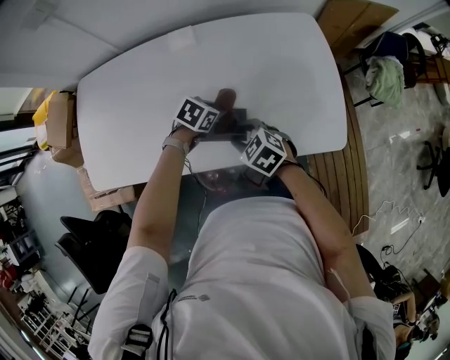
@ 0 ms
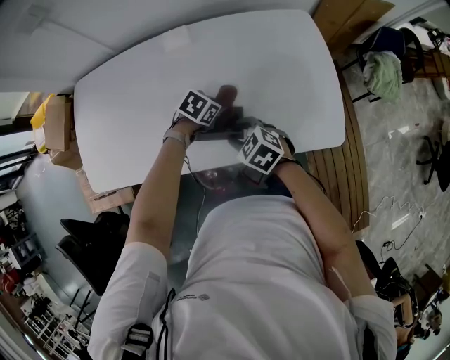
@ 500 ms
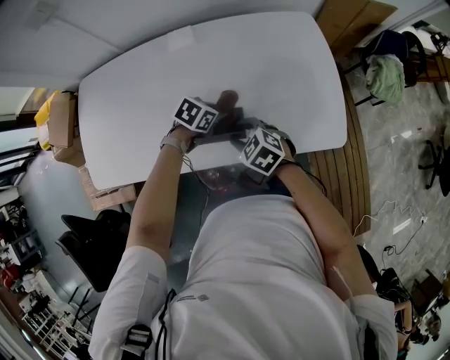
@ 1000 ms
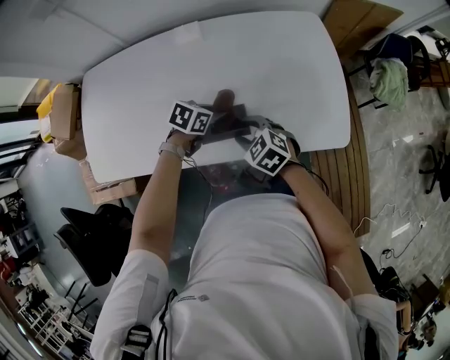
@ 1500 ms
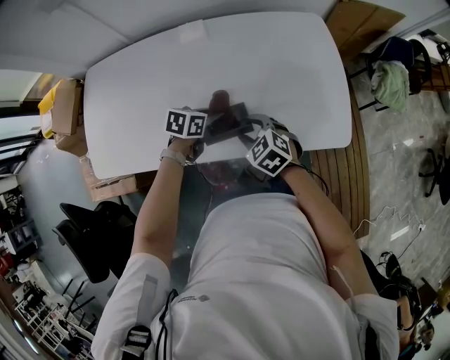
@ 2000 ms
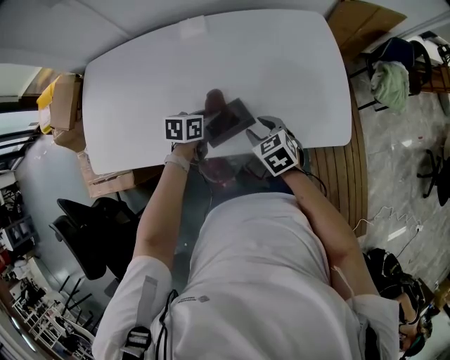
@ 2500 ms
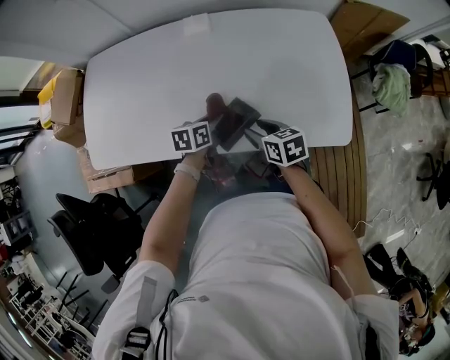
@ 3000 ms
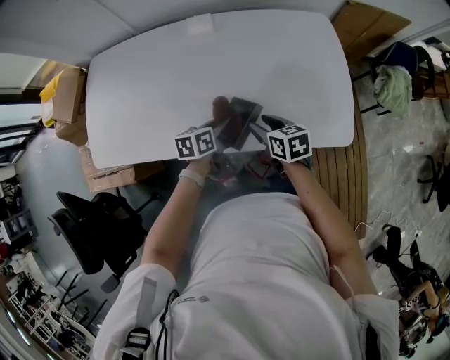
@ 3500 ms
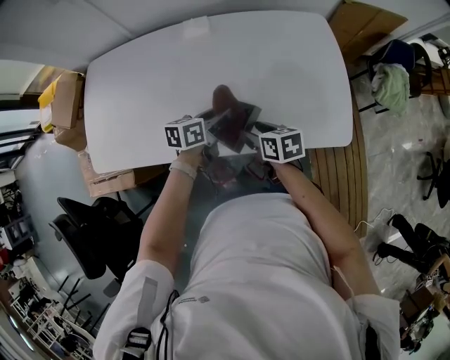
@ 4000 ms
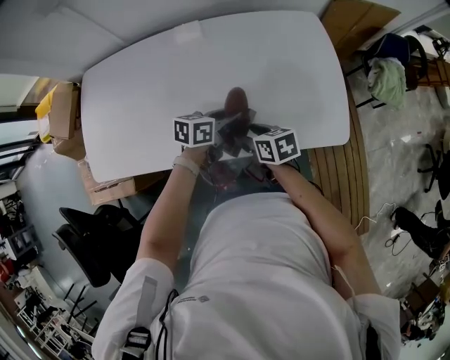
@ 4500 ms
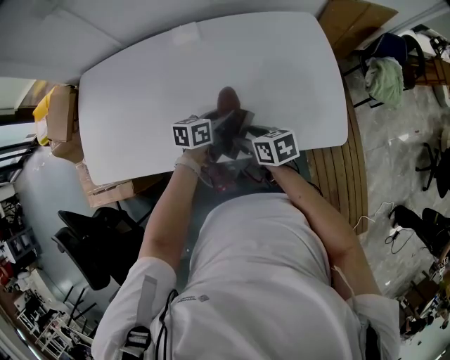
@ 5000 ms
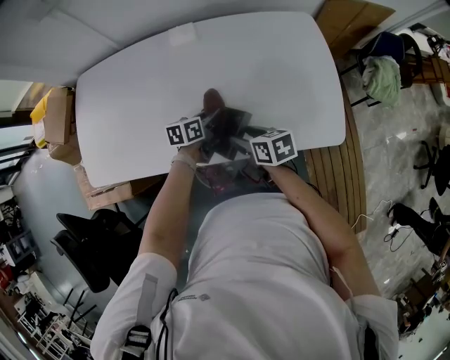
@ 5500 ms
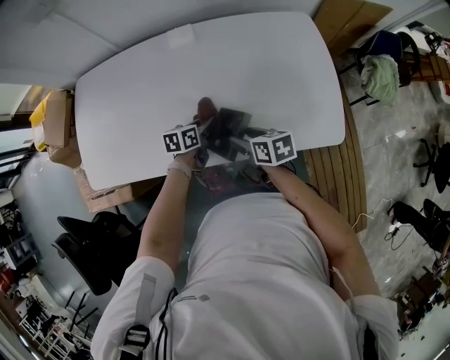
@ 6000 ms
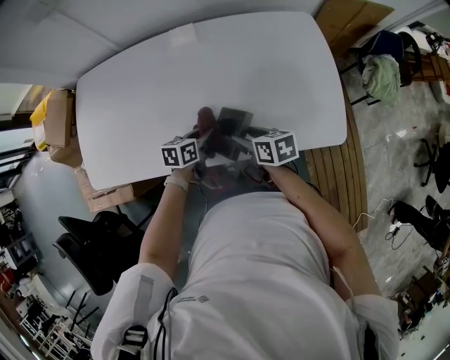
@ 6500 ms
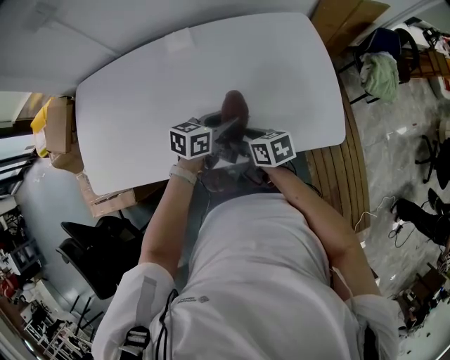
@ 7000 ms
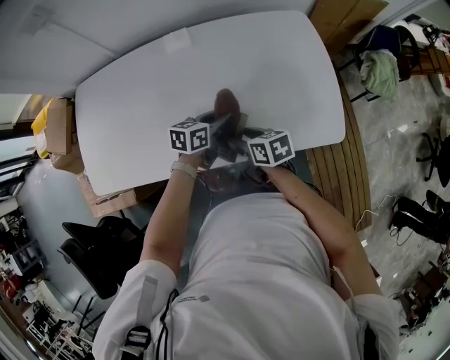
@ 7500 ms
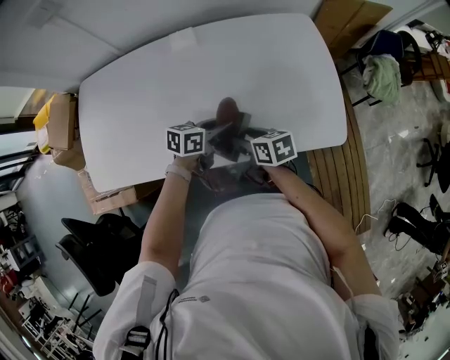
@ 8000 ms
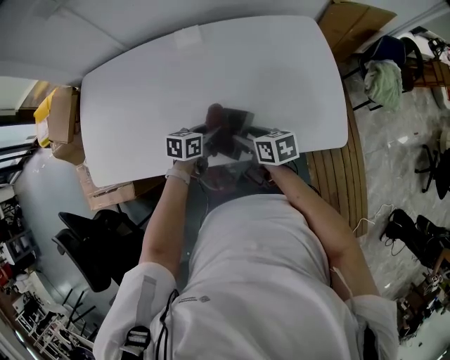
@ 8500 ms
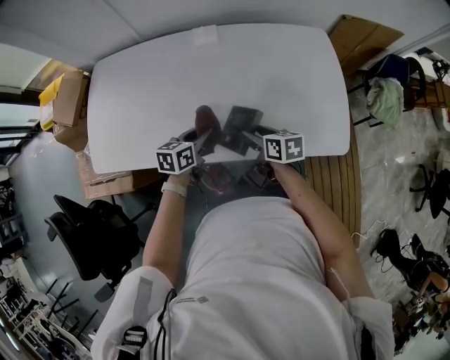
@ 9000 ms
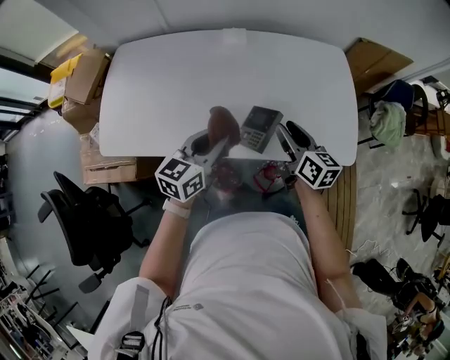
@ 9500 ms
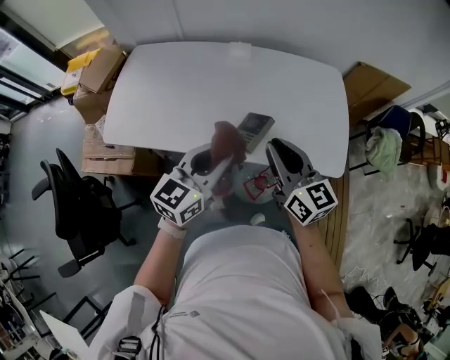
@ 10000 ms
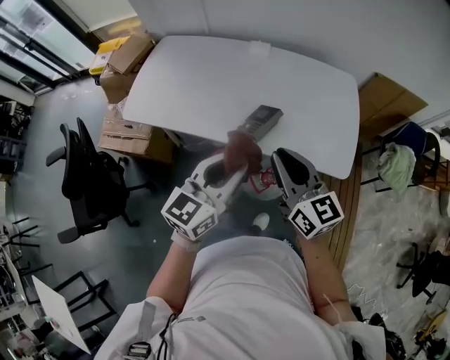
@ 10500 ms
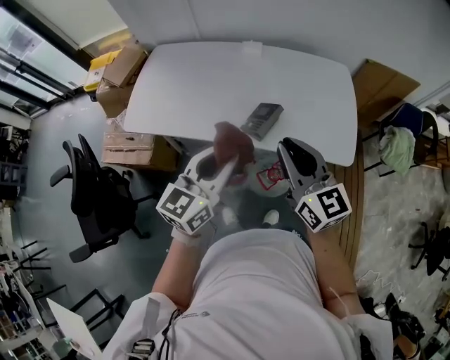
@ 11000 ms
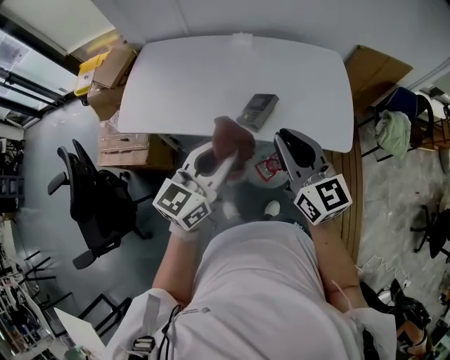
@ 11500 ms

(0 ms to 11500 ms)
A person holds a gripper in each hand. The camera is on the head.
0 ms - 2000 ms: The left gripper ends up roughly 5 cm from where it was, and rotates approximately 20 degrees.
2000 ms - 4000 ms: The left gripper swivels roughly 30 degrees. The right gripper rolls clockwise, seen from behind, by some 50 degrees.
4000 ms - 6000 ms: The left gripper heads downward, covering some 10 cm.
6000 ms - 7500 ms: The left gripper moves upward and to the right, approximately 10 cm.
7500 ms - 9500 ms: The right gripper heads upward, covering some 10 cm, and changes its angle by some 30 degrees, while the left gripper goes approximately 20 cm upward, to the left and backward, and rotates approximately 30 degrees.
9500 ms - 11500 ms: The right gripper travels upward and backward by some 25 cm, turns by about 30 degrees, and closes; the left gripper is displaced backward and upward by some 20 cm.

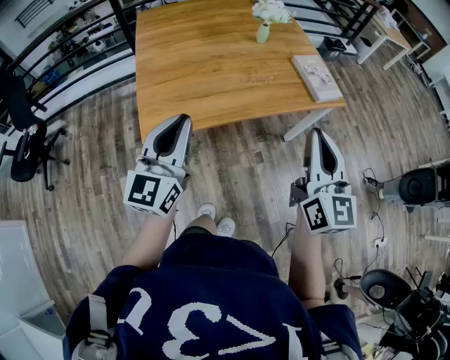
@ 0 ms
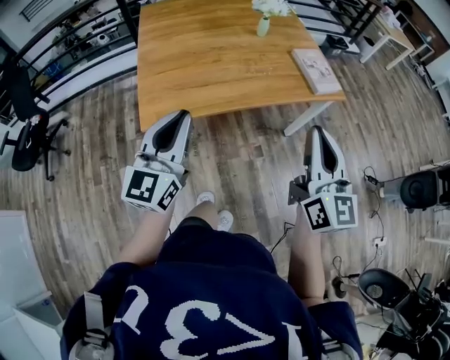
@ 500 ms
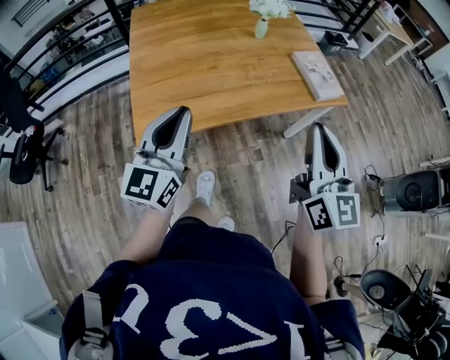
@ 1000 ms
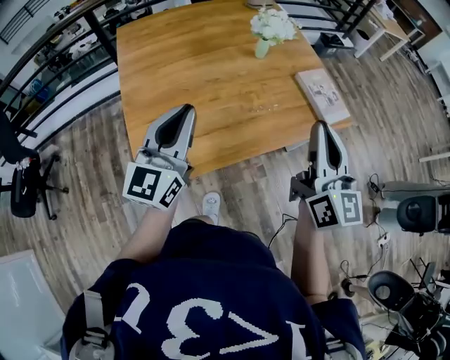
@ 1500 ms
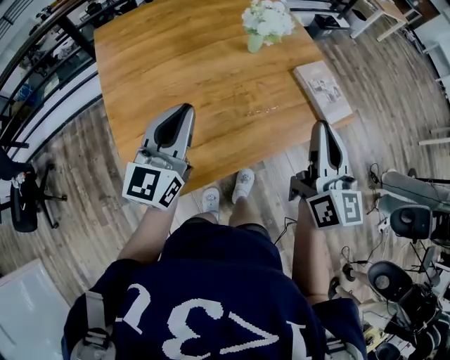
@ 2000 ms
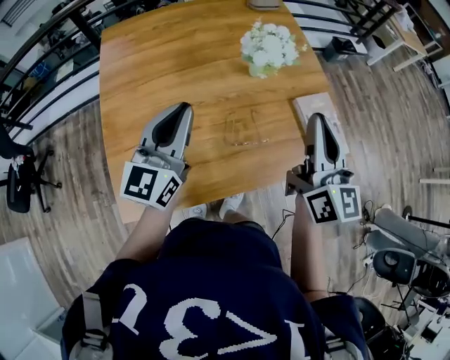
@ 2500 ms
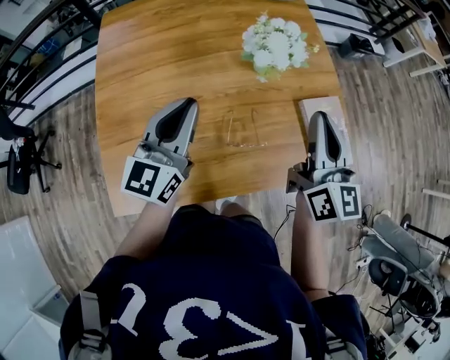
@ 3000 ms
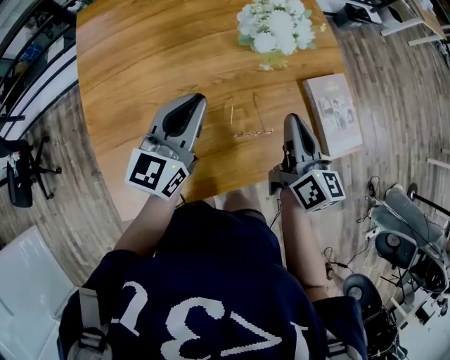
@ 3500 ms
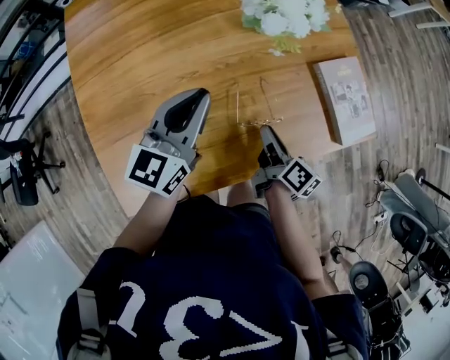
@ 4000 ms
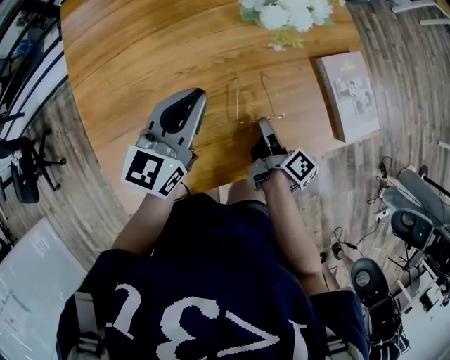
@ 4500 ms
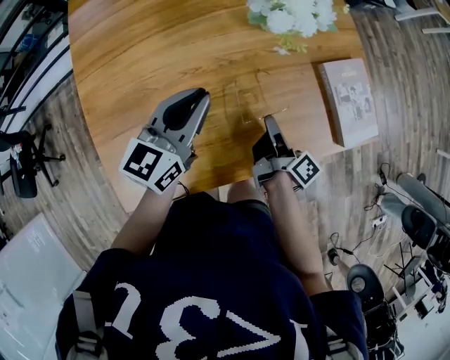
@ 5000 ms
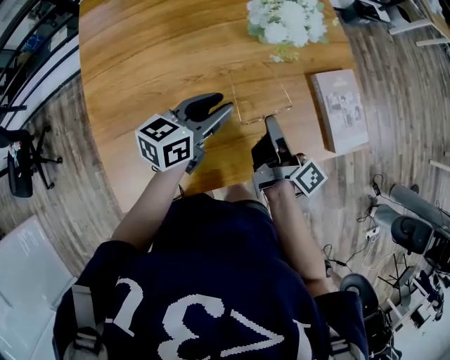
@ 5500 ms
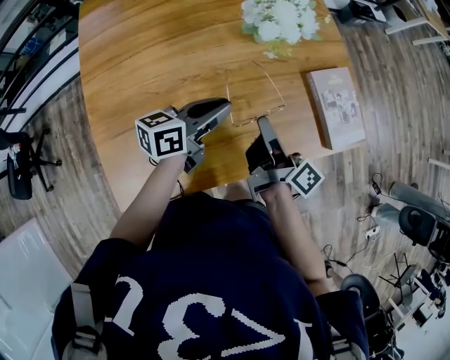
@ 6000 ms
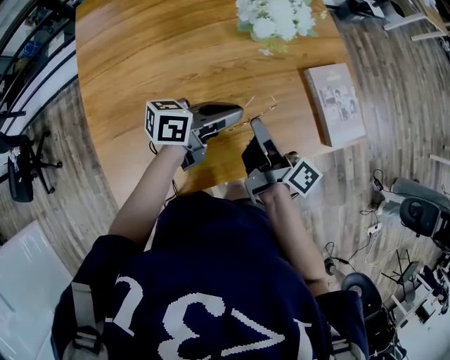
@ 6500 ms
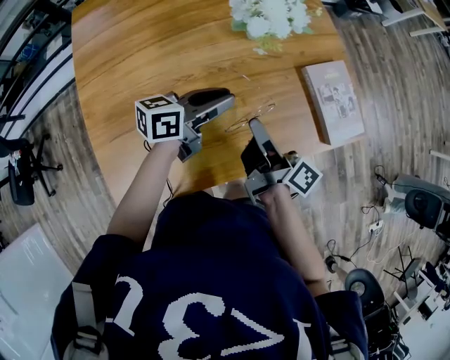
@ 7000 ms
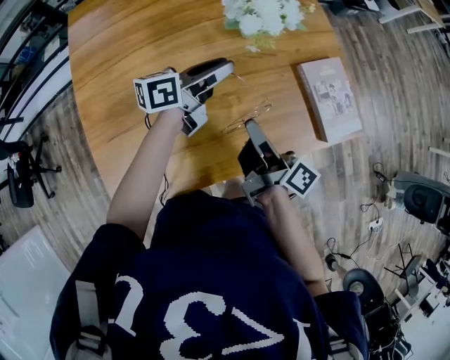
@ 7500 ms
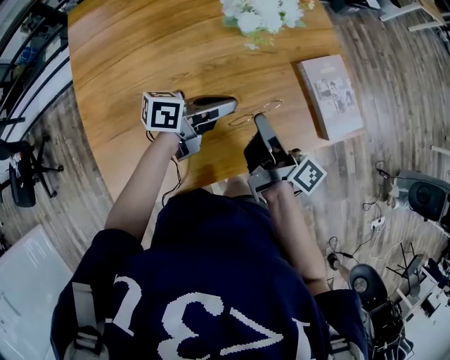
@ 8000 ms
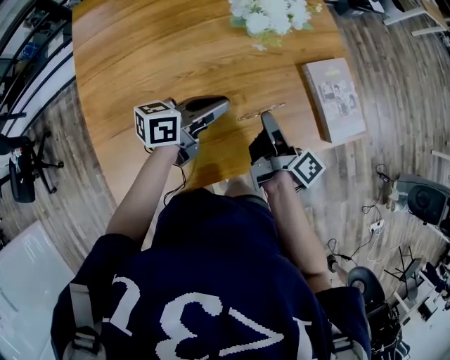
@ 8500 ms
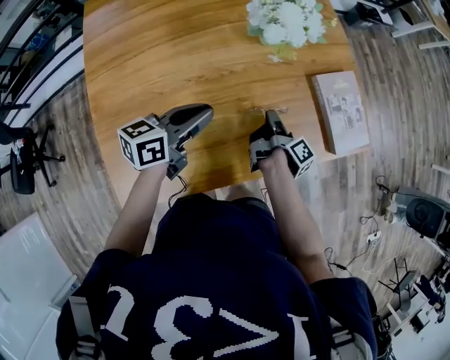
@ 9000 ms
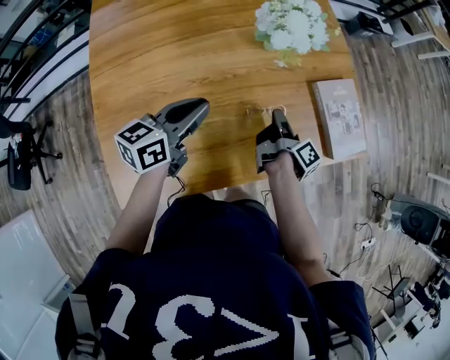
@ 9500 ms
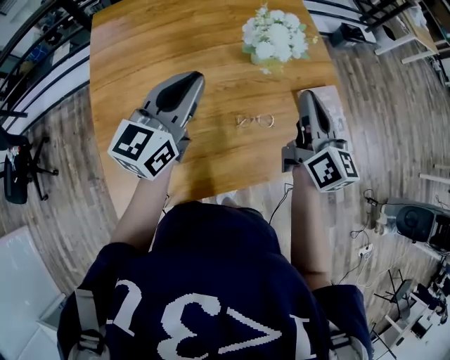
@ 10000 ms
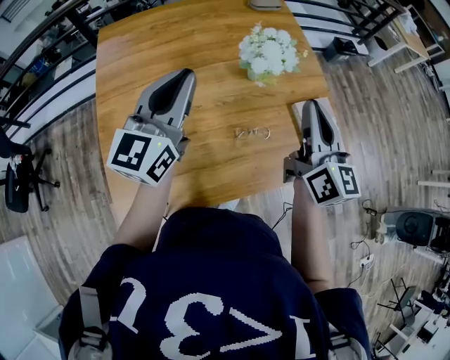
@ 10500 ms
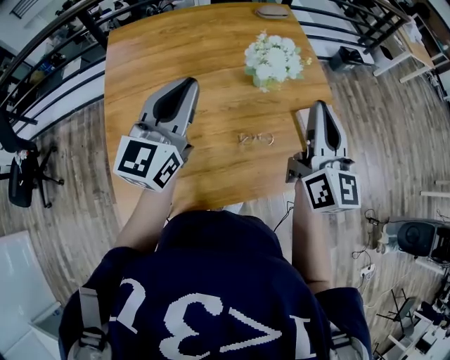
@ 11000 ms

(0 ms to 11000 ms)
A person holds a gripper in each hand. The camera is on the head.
0 ms - 2000 ms: Both grippers travel together forward, roughly 25 cm.
2000 ms - 3500 ms: The right gripper travels forward and downward by about 25 cm, and rotates some 30 degrees; the left gripper moves forward, downward and to the right, approximately 20 cm.
3500 ms - 5500 ms: Both grippers travel together downward, approximately 10 cm. The left gripper changes its angle by some 30 degrees, and opens up; the right gripper twists approximately 50 degrees clockwise, seen from behind.
5500 ms - 7500 ms: The left gripper shifts about 10 cm forward, changes its angle by approximately 20 degrees, and closes, then reopens.
7500 ms - 9000 ms: The left gripper is displaced backward by about 10 cm, and closes its fingers. Meanwhile the right gripper is displaced downward and forward by some 15 cm, and rotates some 40 degrees.
9000 ms - 11000 ms: The right gripper heads upward, covering some 35 cm, and twists approximately 80 degrees counterclockwise, seen from behind. The left gripper moves upward, about 20 cm, and rotates some 50 degrees.

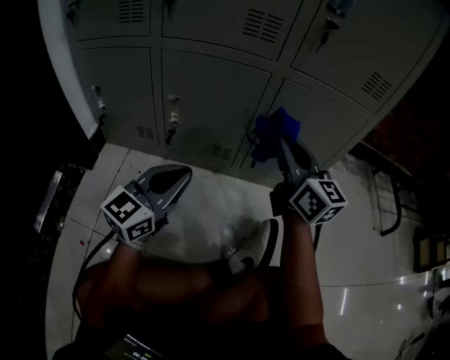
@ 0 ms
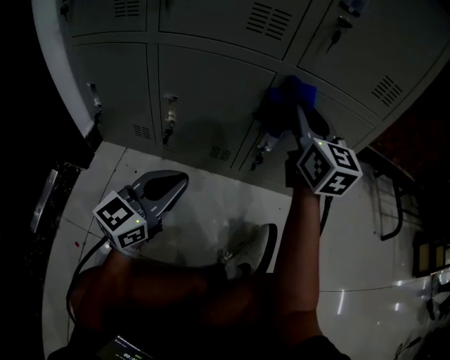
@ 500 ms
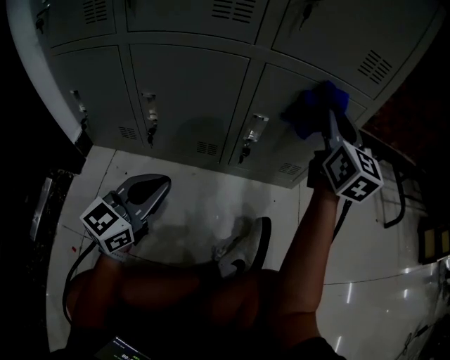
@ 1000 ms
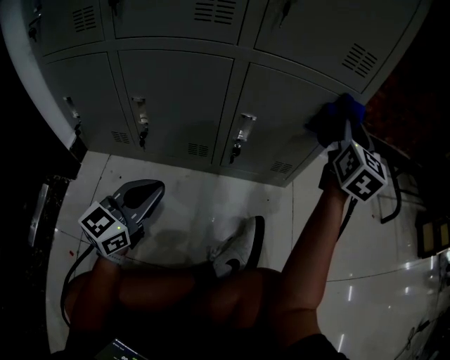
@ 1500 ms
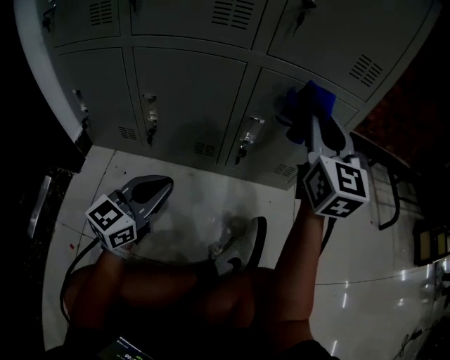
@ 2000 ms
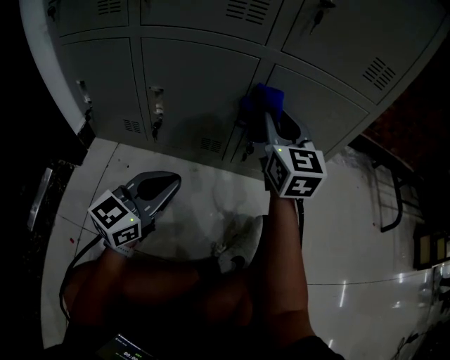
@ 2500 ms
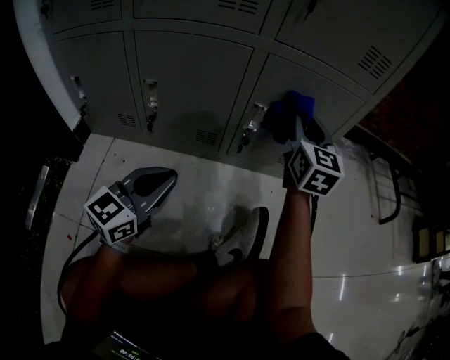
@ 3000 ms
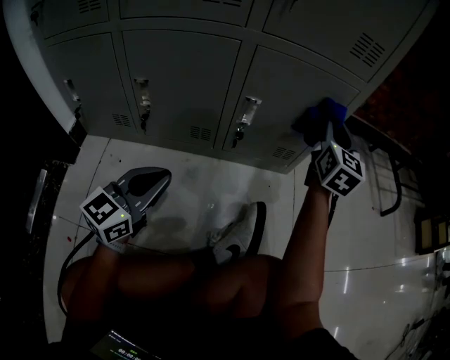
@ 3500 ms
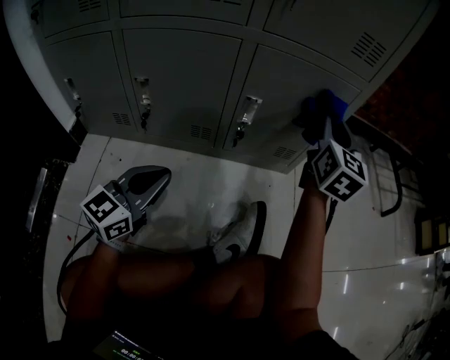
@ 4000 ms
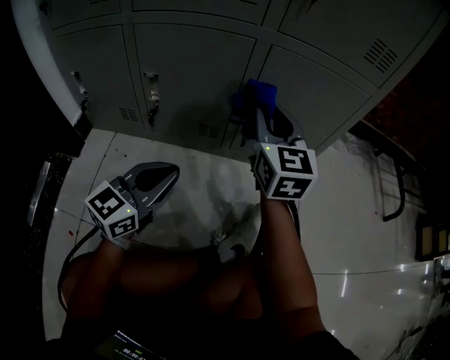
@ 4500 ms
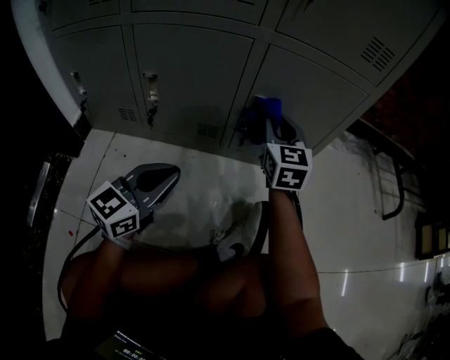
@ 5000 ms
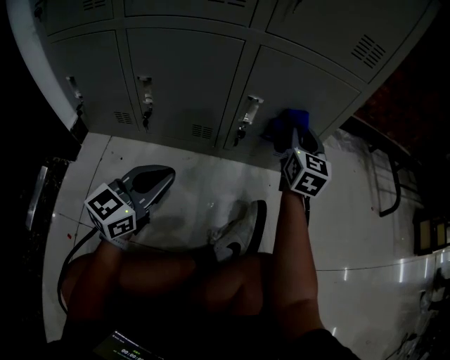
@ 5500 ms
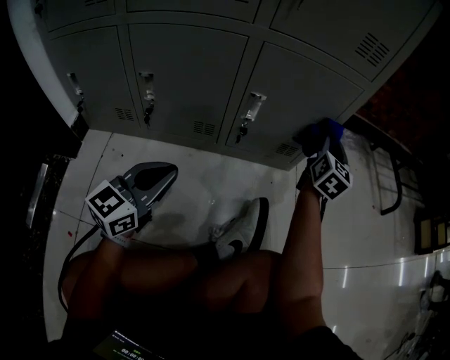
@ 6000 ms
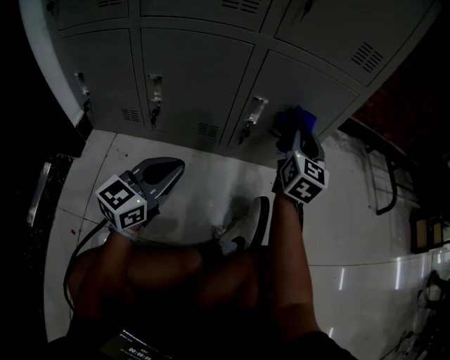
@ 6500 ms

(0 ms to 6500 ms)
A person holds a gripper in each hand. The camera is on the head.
0 ms - 2000 ms: The right gripper goes about 10 cm to the right and upward, and rotates about 30 degrees.
2000 ms - 4500 ms: The right gripper moves left and right over some 20 cm, changing direction 2 times.
4500 ms - 6500 ms: The right gripper travels to the right by approximately 15 cm, and turns by roughly 20 degrees.
